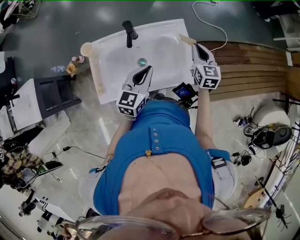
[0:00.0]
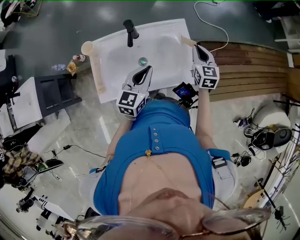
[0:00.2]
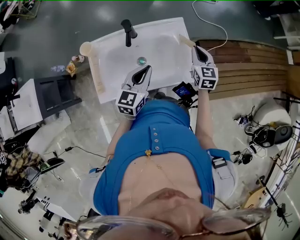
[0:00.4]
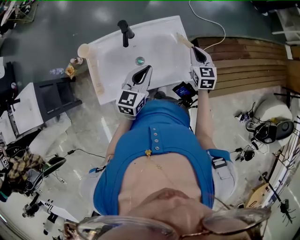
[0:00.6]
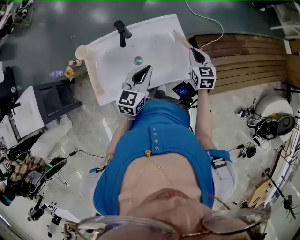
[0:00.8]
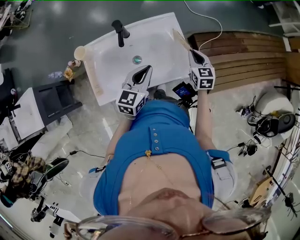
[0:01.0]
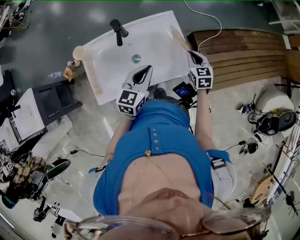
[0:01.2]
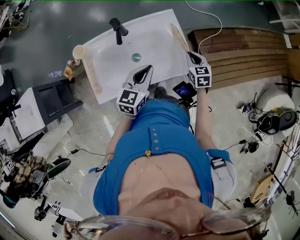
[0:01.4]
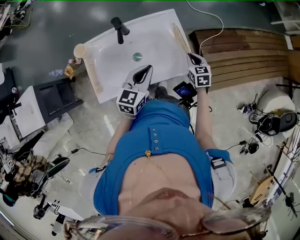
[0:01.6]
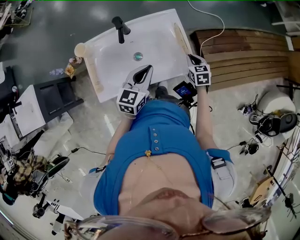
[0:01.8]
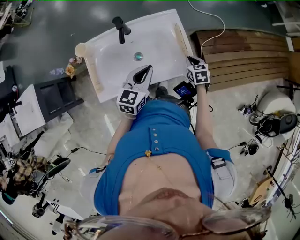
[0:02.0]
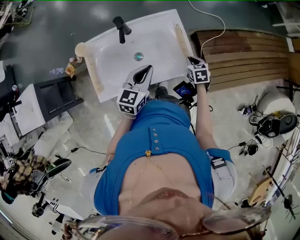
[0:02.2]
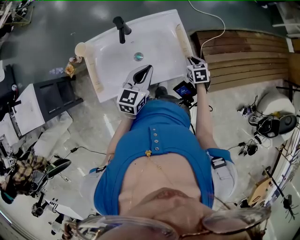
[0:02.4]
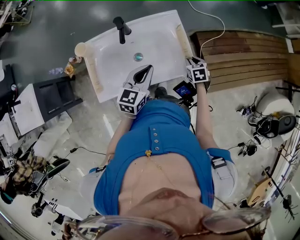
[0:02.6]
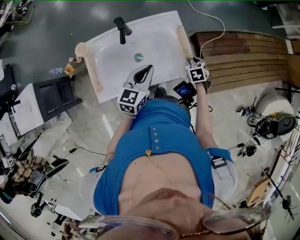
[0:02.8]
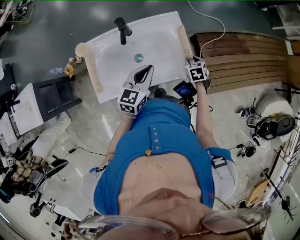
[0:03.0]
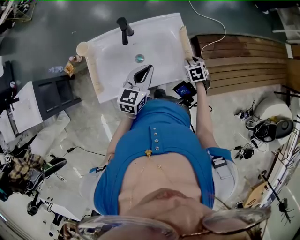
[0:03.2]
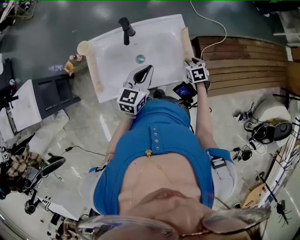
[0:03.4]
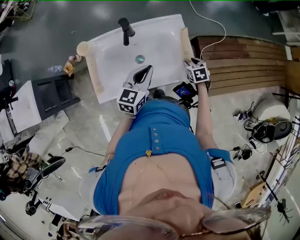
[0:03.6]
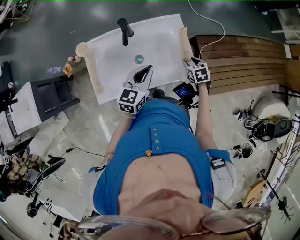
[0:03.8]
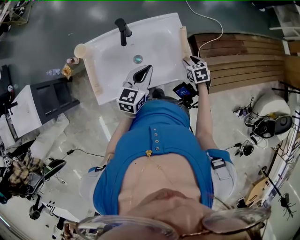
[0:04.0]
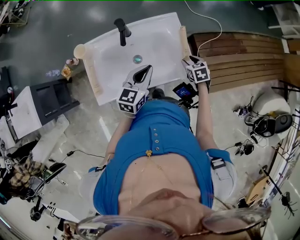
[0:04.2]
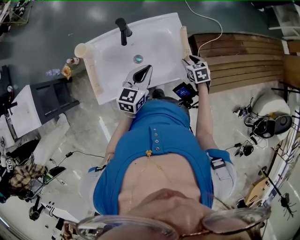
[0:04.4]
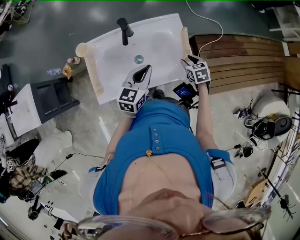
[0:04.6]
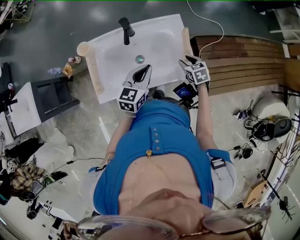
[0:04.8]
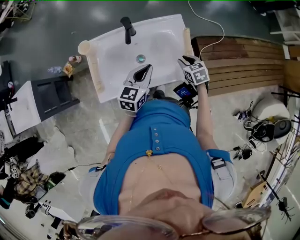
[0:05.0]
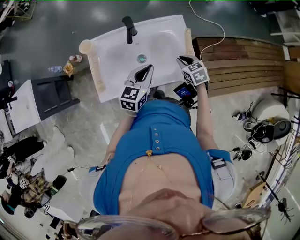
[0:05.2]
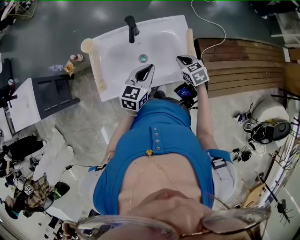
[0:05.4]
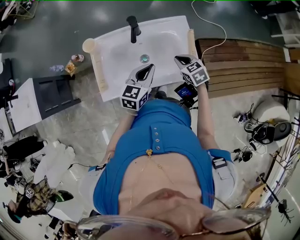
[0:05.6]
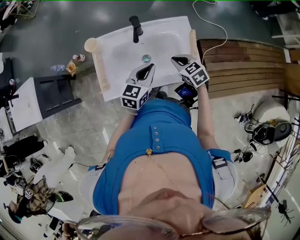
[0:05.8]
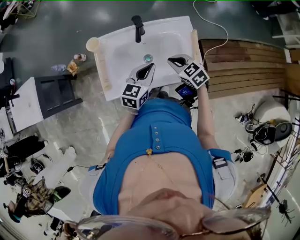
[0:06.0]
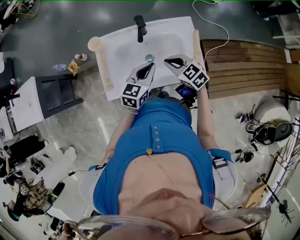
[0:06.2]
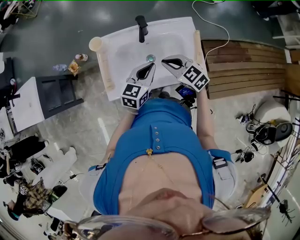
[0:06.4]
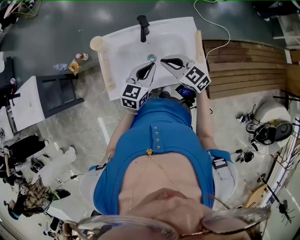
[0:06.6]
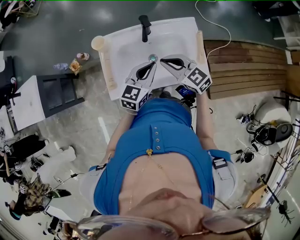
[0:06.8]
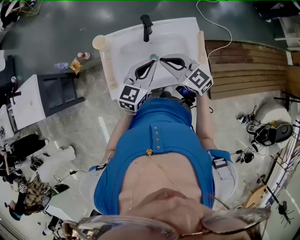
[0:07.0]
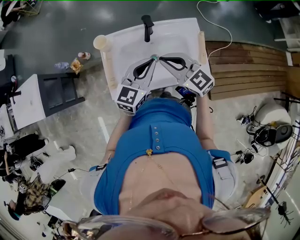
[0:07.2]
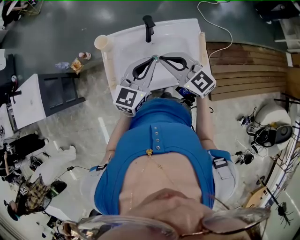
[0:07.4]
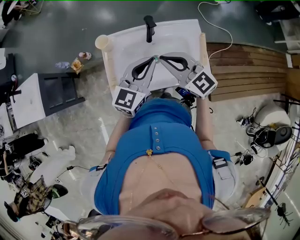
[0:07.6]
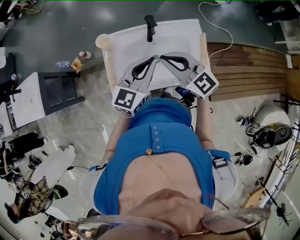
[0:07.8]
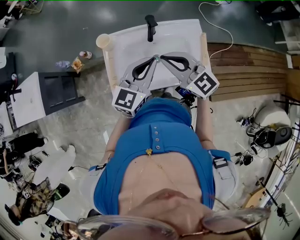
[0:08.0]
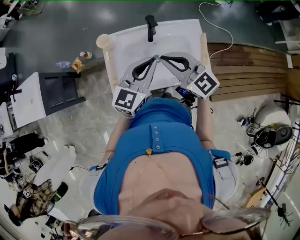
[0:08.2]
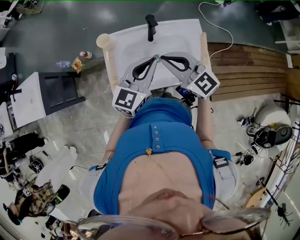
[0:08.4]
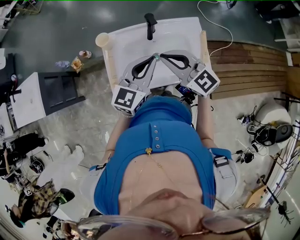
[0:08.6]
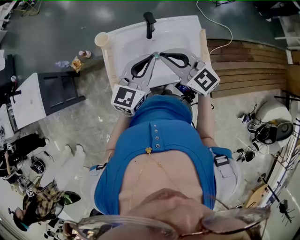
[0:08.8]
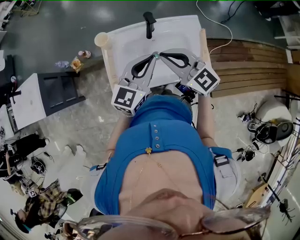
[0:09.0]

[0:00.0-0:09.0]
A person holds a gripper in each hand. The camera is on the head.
0:00.0 to 0:01.6: The right gripper is displaced downward and backward by about 15 cm, and swivels some 20 degrees.
0:01.6 to 0:03.0: The right gripper goes approximately 5 cm downward, and opens its fingers.
0:03.0 to 0:04.4: The grippers stay close to where they were, moving slightly.
0:04.4 to 0:06.0: The right gripper travels to the left and upward by approximately 20 cm, swivels some 30 degrees, and closes its fingers.
0:06.0 to 0:07.6: The left gripper moves upward, approximately 10 cm. Meanwhile the right gripper is displaced upward and to the left by about 20 cm, and tips its fingers upward by some 30 degrees.
0:07.6 to 0:09.0: Both grippers stay about where they are.

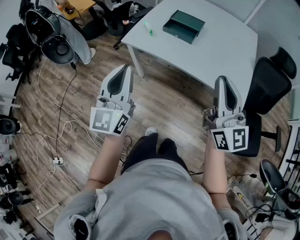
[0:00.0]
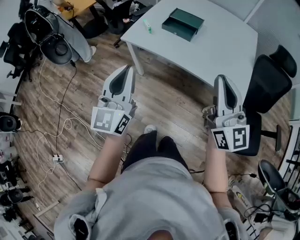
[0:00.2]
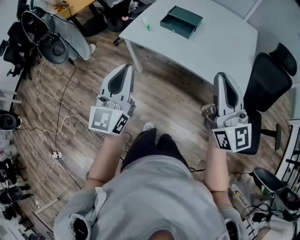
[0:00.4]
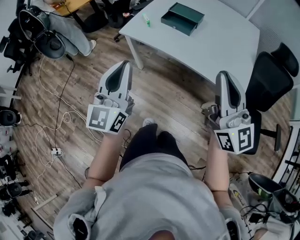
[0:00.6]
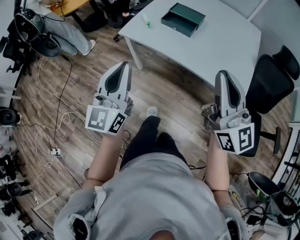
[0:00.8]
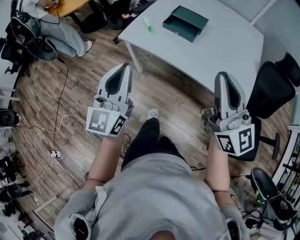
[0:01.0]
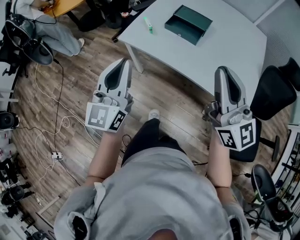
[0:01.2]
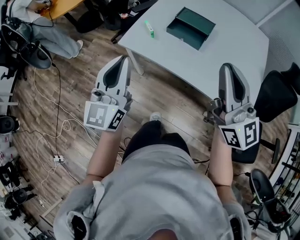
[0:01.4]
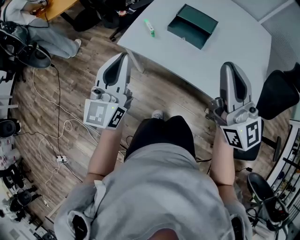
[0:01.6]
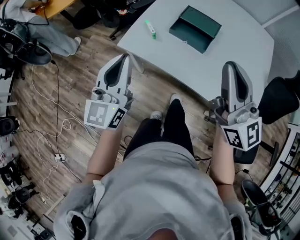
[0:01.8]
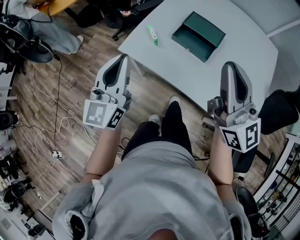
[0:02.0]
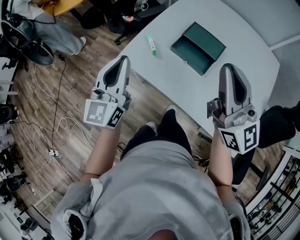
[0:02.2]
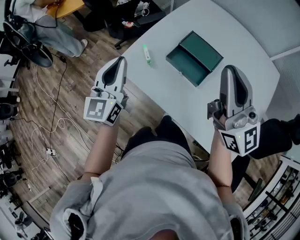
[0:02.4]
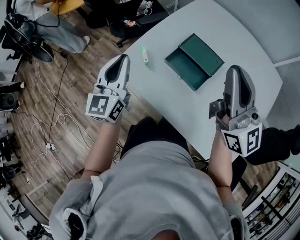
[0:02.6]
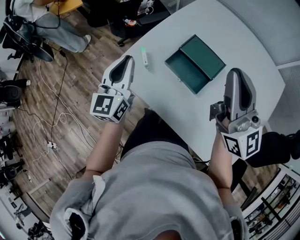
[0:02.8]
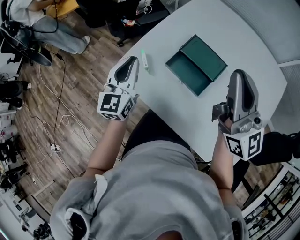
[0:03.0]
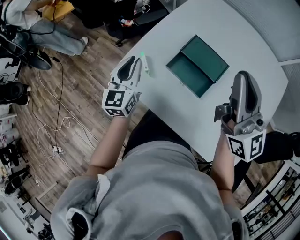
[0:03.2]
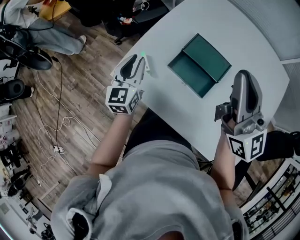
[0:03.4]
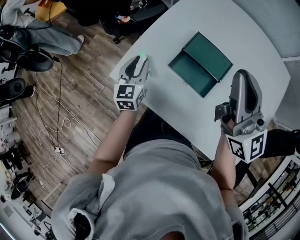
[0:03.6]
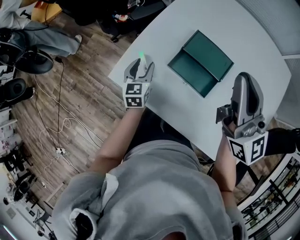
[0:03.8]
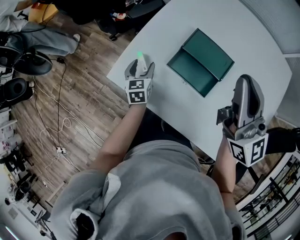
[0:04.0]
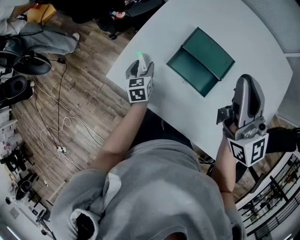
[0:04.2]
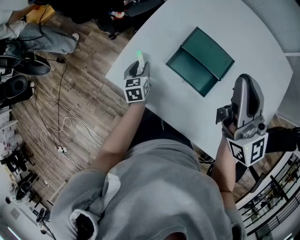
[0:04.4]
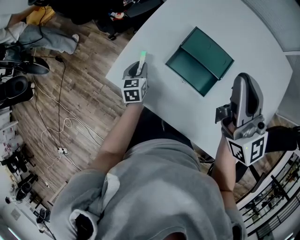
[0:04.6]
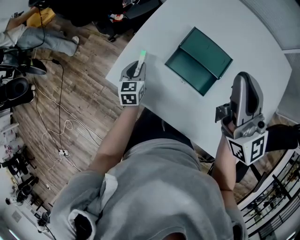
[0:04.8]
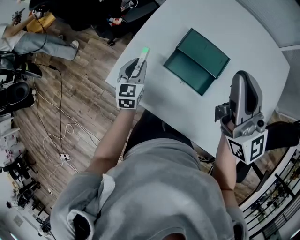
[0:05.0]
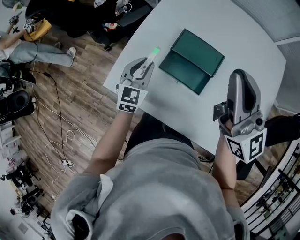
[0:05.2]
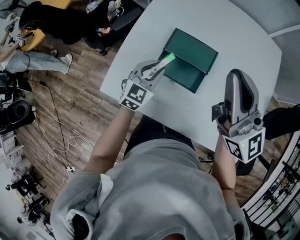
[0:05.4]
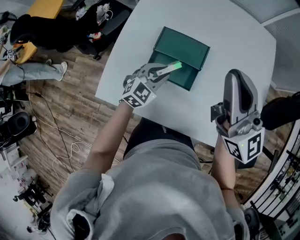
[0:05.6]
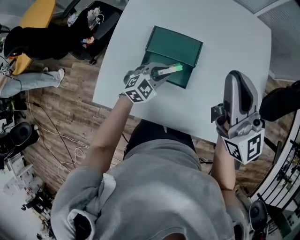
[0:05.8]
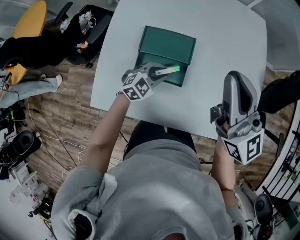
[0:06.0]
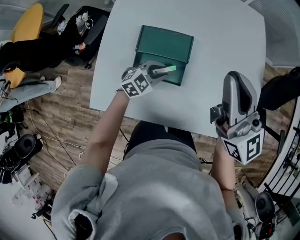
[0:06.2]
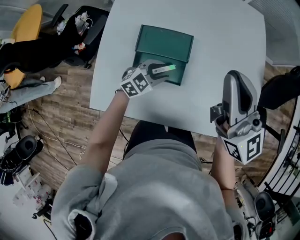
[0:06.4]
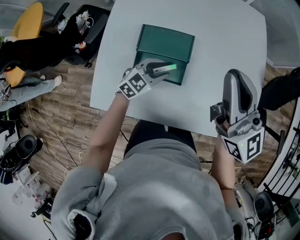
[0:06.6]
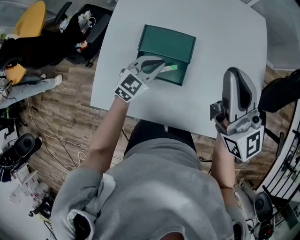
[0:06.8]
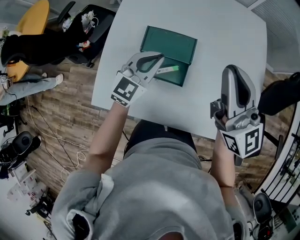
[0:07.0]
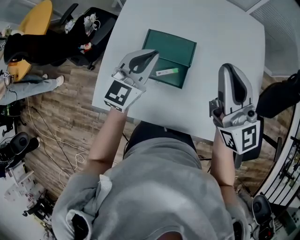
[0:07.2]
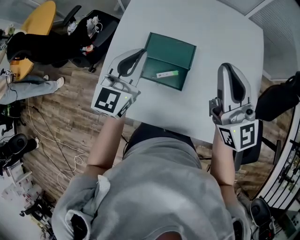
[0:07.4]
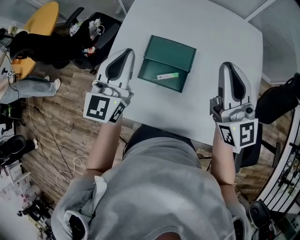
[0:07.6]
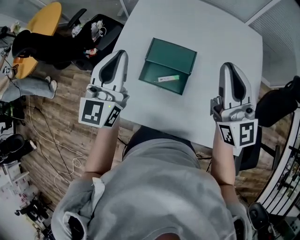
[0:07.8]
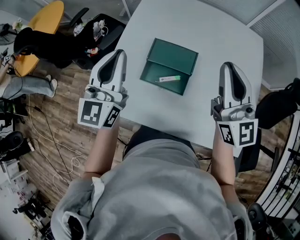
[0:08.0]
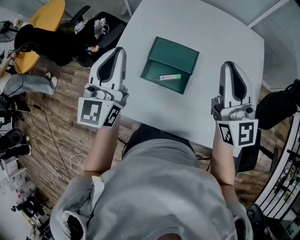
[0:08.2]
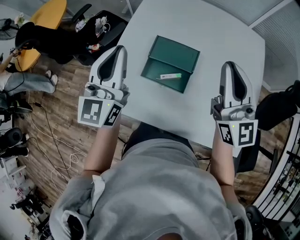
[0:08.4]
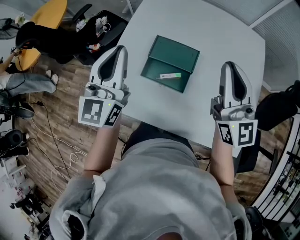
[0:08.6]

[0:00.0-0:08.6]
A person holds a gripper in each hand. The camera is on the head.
0:00.0 to 0:01.4: The grippers both shift forward by about 20 cm.
0:01.4 to 0:02.8: Both grippers move forward, about 30 cm.
0:02.8 to 0:04.4: The left gripper heads downward and forward, covering about 30 cm, angles its fingers downward, by roughly 40 degrees, and opens its fingers, while the right gripper heads forward, covering some 10 cm.
0:04.4 to 0:05.8: The left gripper moves some 25 cm, and turns by roughly 90 degrees, while the right gripper moves about 10 cm.
0:05.8 to 0:07.2: The left gripper moves upward, approximately 20 cm, and turns by some 40 degrees.
0:07.2 to 0:08.6: The left gripper shifts about 15 cm upward and to the left, and rotates roughly 30 degrees.

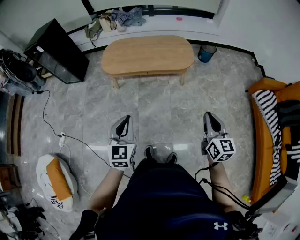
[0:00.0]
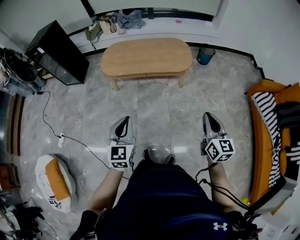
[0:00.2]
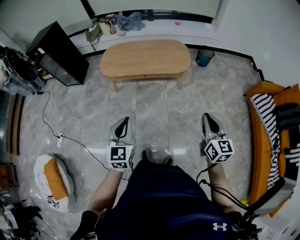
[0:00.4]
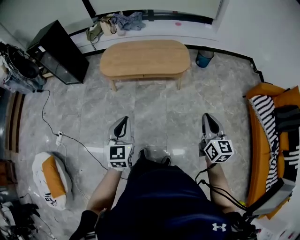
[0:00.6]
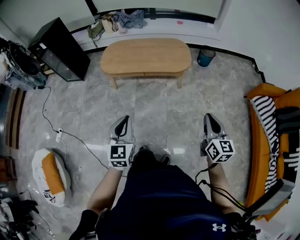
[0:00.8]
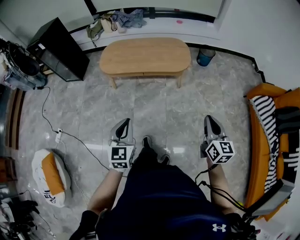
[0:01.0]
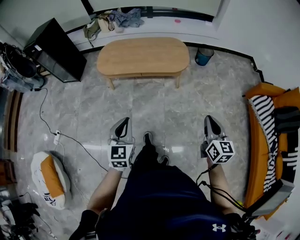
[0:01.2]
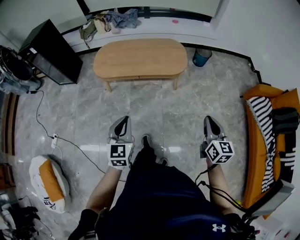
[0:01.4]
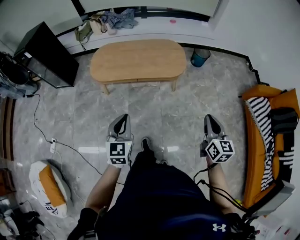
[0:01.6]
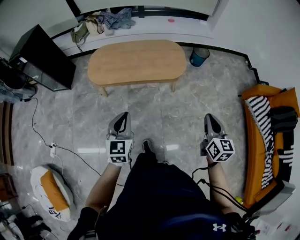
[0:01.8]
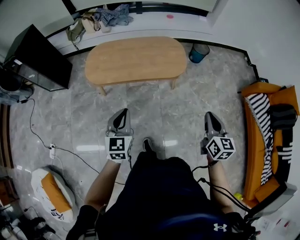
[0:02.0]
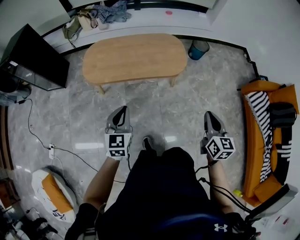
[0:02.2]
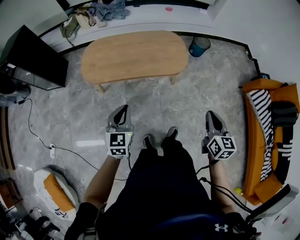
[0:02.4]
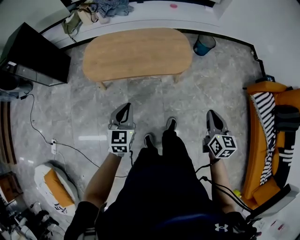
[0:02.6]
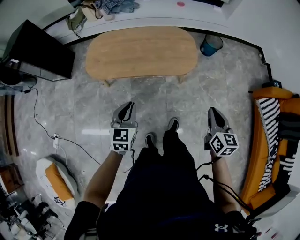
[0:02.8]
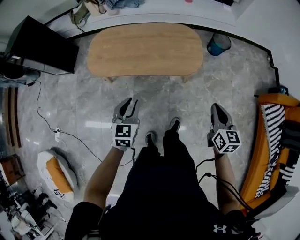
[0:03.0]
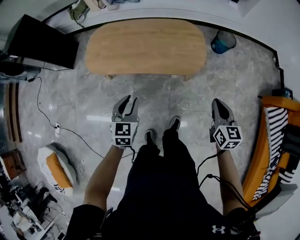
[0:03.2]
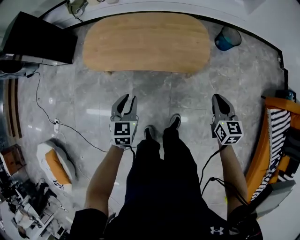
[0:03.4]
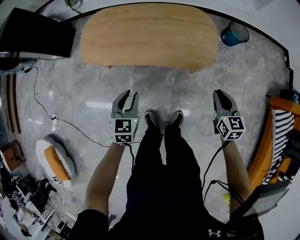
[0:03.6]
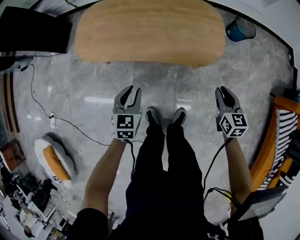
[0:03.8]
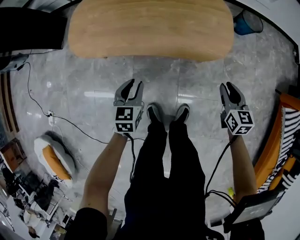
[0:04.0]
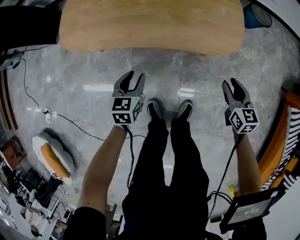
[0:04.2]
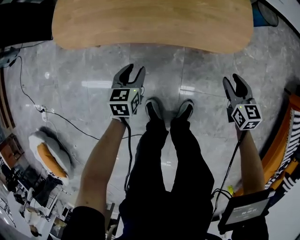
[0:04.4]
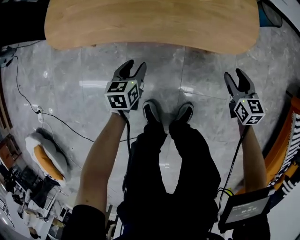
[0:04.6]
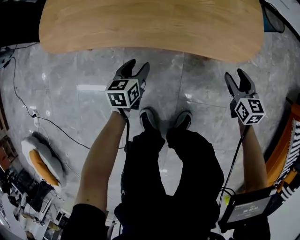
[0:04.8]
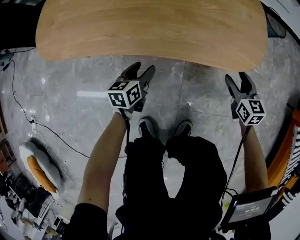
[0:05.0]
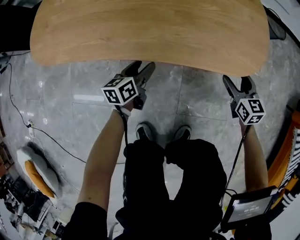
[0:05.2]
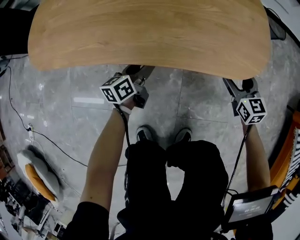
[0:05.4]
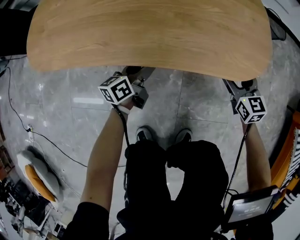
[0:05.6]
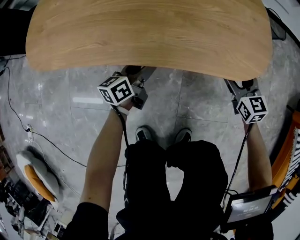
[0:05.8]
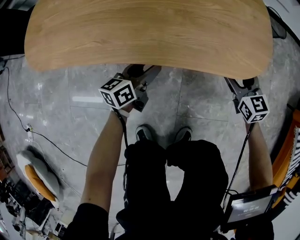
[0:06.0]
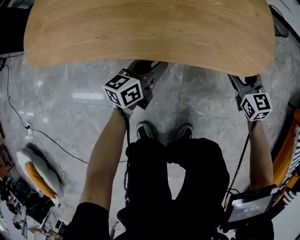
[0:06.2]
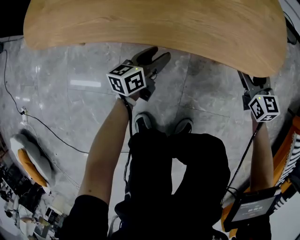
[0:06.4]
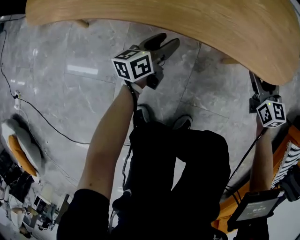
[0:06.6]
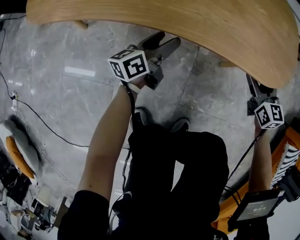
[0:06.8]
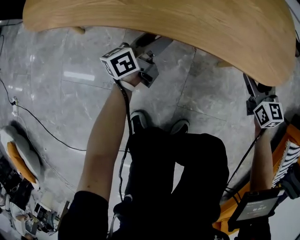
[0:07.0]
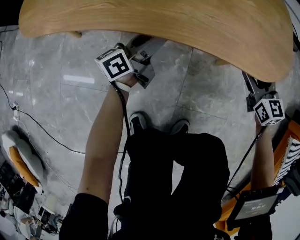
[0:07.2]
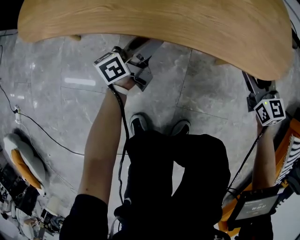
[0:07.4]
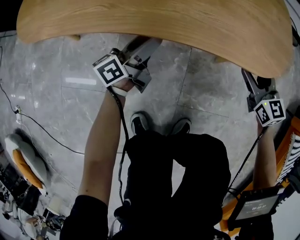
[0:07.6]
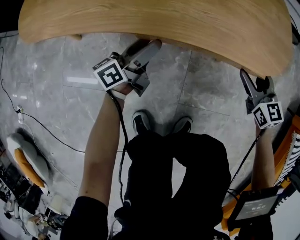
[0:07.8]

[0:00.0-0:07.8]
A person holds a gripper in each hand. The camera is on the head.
0:00.0 to 0:01.6: The right gripper heads forward and to the right, covering approximately 10 cm; the left gripper moves forward, approximately 10 cm.
0:01.6 to 0:03.2: Both grippers travel together forward and downward, approximately 30 cm.
0:03.2 to 0:04.6: Both grippers move downward, about 40 cm. The right gripper opens; the left gripper turns by approximately 30 degrees.
0:04.6 to 0:06.2: The left gripper moves forward, to the right and downward, roughly 15 cm, and swivels some 30 degrees; the right gripper goes roughly 15 cm forward and downward.
0:06.2 to 0:07.8: The left gripper shifts approximately 5 cm to the left, changes its angle by roughly 30 degrees, and opens up.
